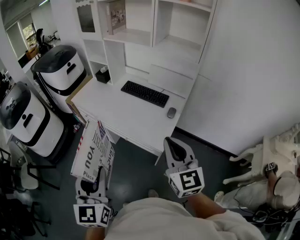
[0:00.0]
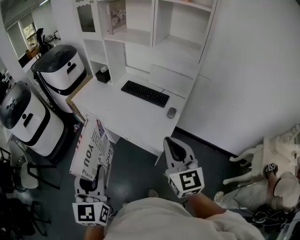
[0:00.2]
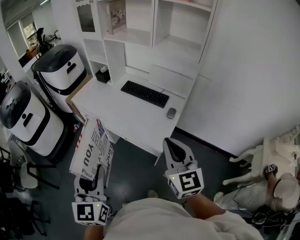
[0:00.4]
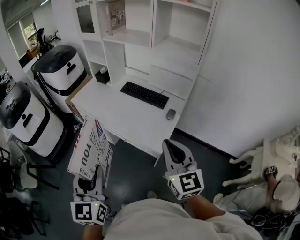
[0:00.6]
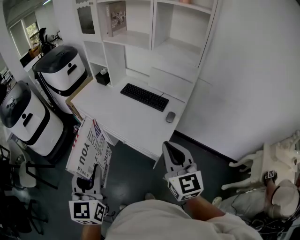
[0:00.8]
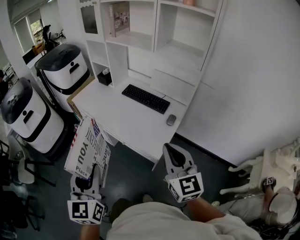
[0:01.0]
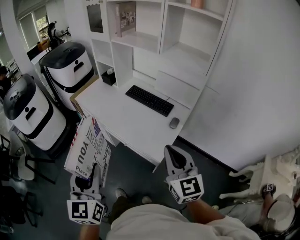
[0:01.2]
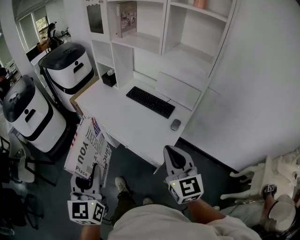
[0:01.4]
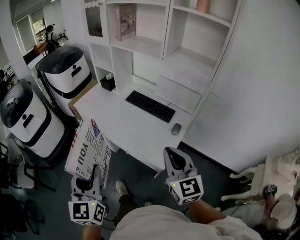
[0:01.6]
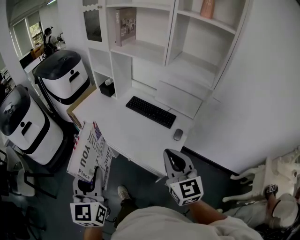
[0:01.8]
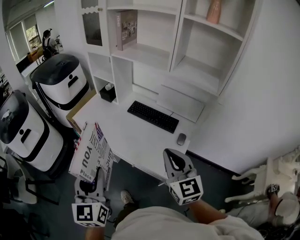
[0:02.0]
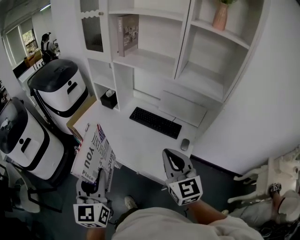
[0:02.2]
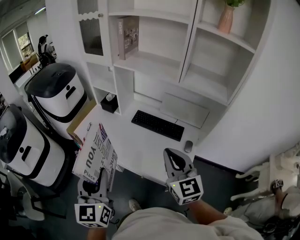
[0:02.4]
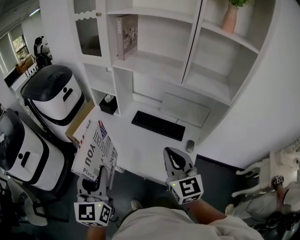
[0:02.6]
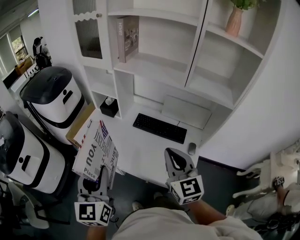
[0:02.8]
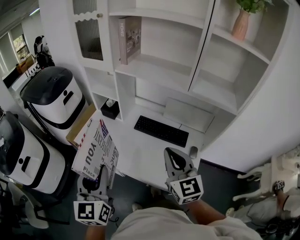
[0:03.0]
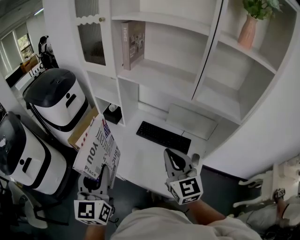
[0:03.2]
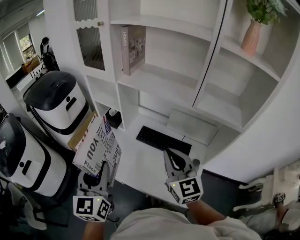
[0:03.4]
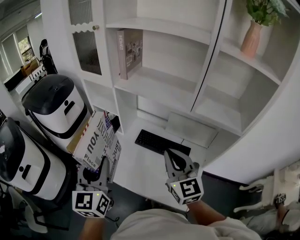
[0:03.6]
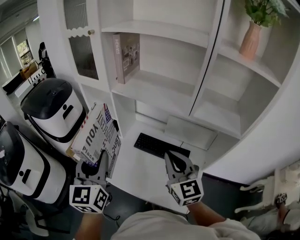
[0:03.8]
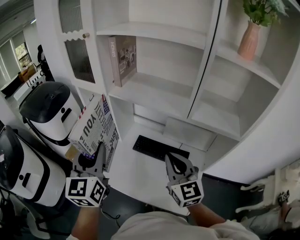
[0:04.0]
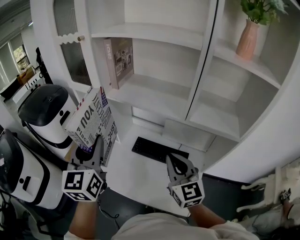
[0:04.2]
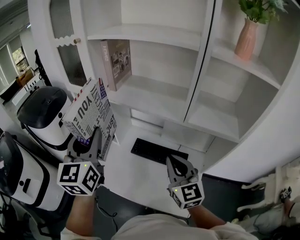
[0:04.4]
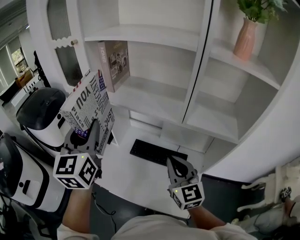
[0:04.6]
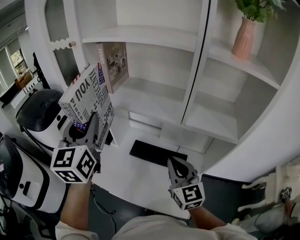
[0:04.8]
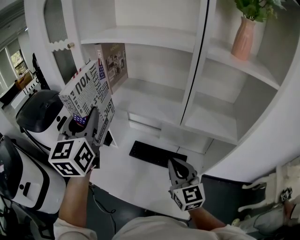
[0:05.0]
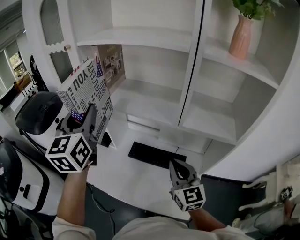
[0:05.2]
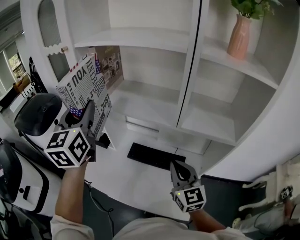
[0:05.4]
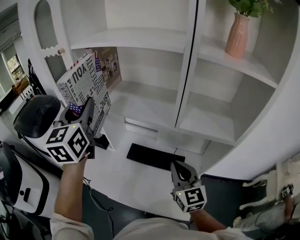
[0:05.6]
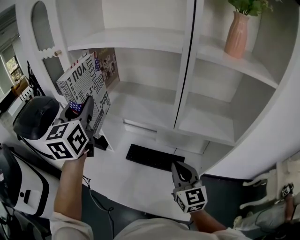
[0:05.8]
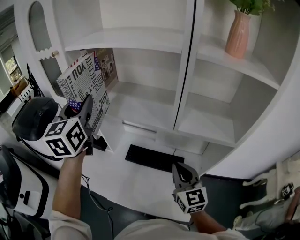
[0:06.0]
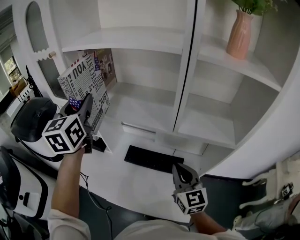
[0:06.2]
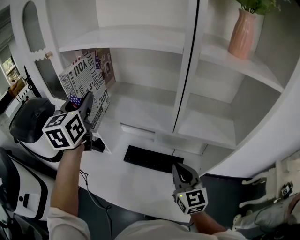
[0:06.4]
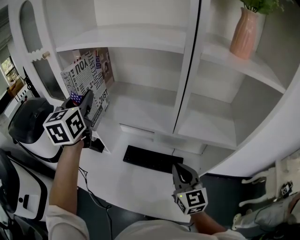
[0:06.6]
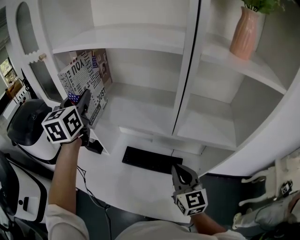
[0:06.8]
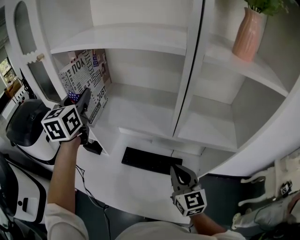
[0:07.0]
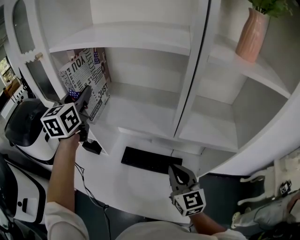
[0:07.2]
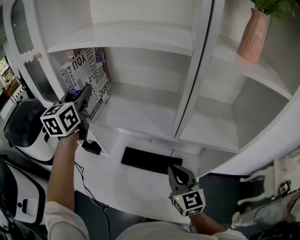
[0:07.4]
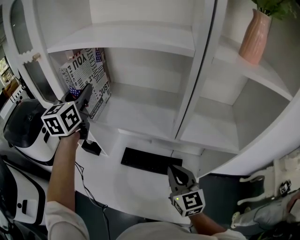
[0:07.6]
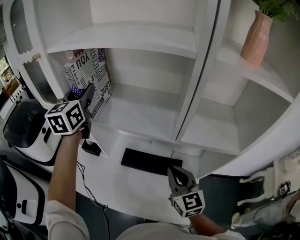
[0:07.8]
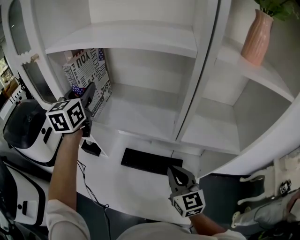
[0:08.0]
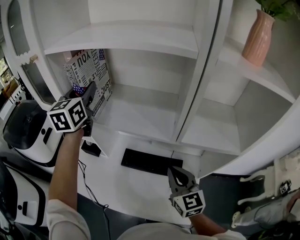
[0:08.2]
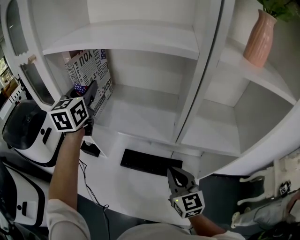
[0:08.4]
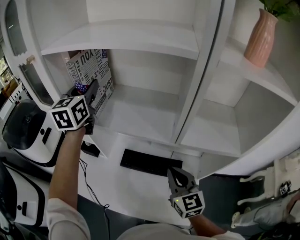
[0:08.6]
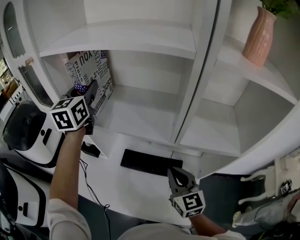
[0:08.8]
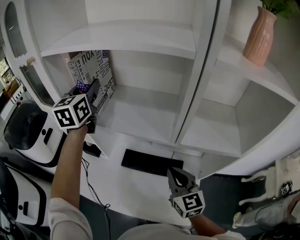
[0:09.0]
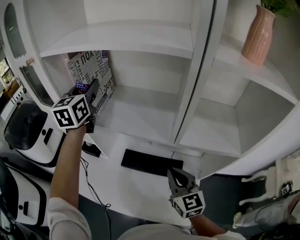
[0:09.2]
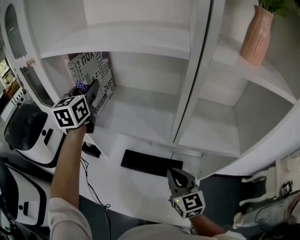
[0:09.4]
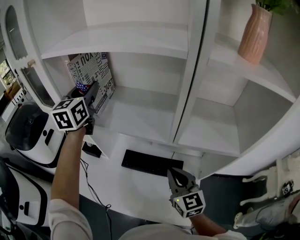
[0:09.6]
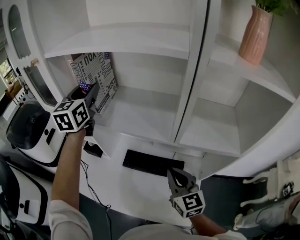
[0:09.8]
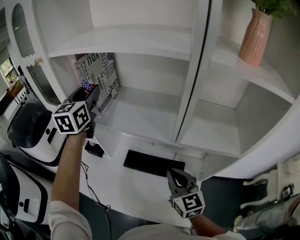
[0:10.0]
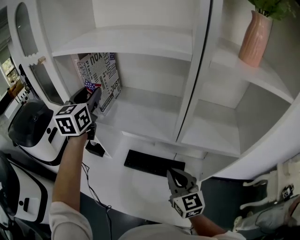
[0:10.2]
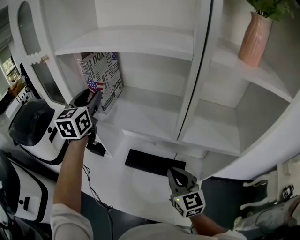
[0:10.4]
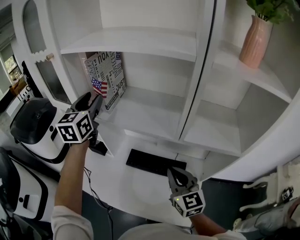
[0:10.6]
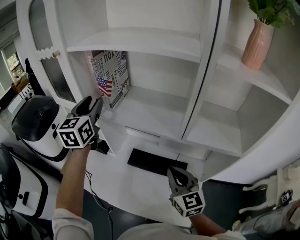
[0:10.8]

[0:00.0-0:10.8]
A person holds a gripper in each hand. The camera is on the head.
0:00.0 to 0:01.6: Both grippers travel together forward, roughly 10 cm.
0:01.6 to 0:03.0: The left gripper is displaced forward by approximately 25 cm, while the right gripper goes some 25 cm forward and to the left.
0:03.0 to 0:04.6: The left gripper heads forward and upward, covering some 30 cm; the right gripper heads forward and to the right, covering roughly 15 cm.
0:04.6 to 0:06.2: The left gripper heads forward, covering some 15 cm; the right gripper heads to the right, covering about 5 cm.
0:06.2 to 0:07.8: The left gripper shifts some 10 cm forward.
0:07.8 to 0:09.2: The grippers stay close to where they were, moving slightly.
0:09.2 to 0:10.8: The left gripper goes roughly 10 cm backward and to the left.

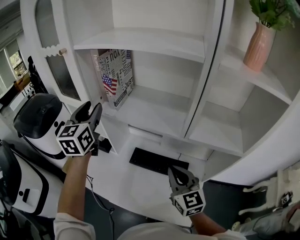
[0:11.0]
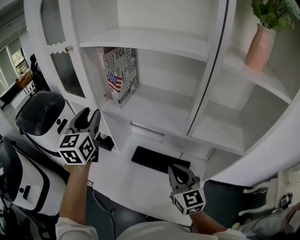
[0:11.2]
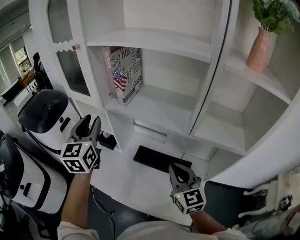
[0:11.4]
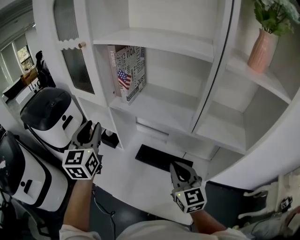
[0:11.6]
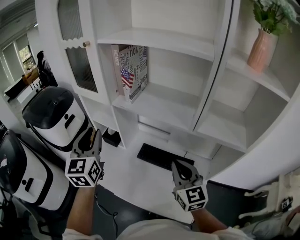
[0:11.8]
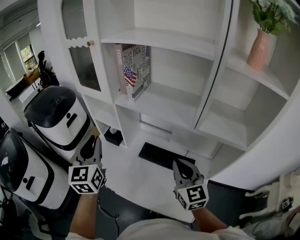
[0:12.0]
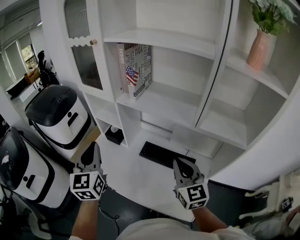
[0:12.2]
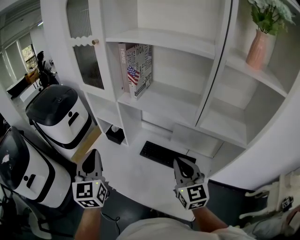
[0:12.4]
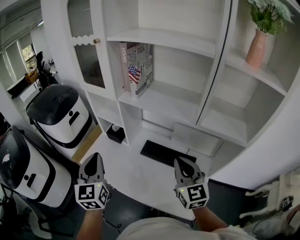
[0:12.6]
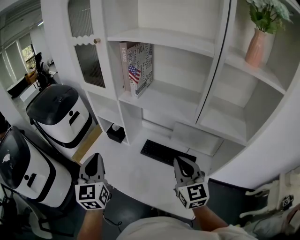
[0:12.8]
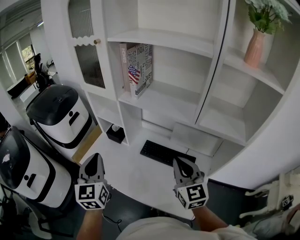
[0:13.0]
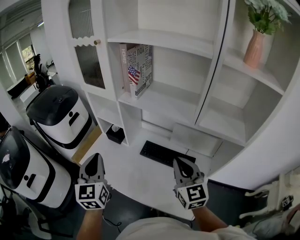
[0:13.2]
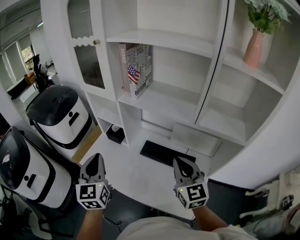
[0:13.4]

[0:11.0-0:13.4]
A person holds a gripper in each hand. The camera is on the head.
0:11.0 to 0:12.2: The left gripper moves backward and to the left, roughly 20 cm, and closes up; the right gripper shifts by approximately 5 cm.
0:12.2 to 0:13.4: The left gripper changes place by some 5 cm.

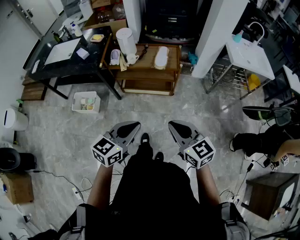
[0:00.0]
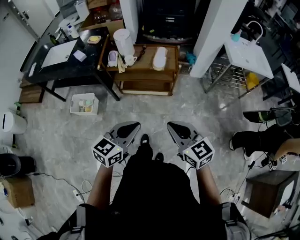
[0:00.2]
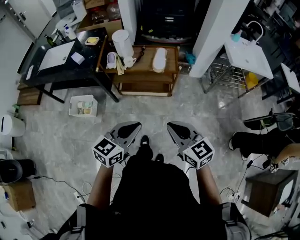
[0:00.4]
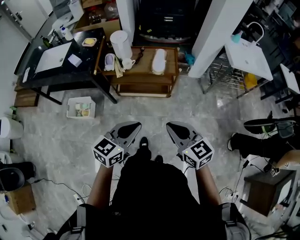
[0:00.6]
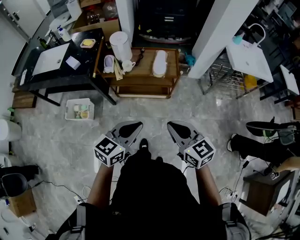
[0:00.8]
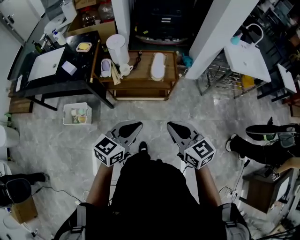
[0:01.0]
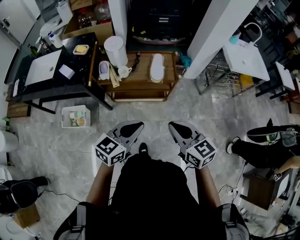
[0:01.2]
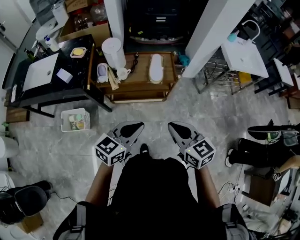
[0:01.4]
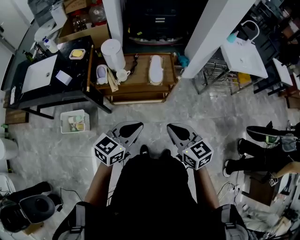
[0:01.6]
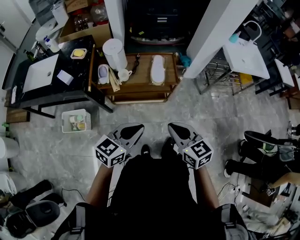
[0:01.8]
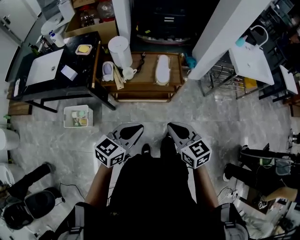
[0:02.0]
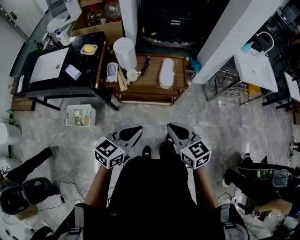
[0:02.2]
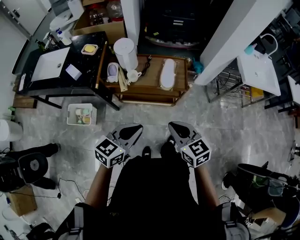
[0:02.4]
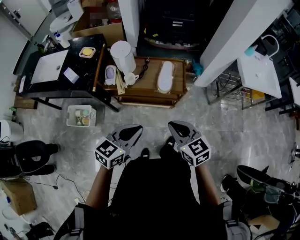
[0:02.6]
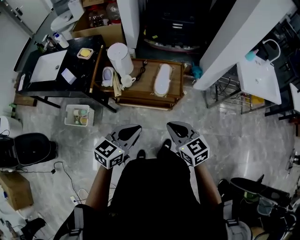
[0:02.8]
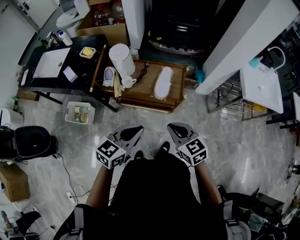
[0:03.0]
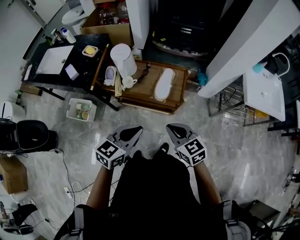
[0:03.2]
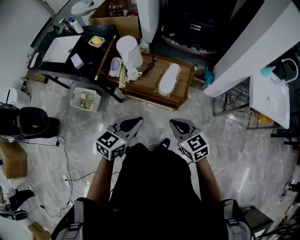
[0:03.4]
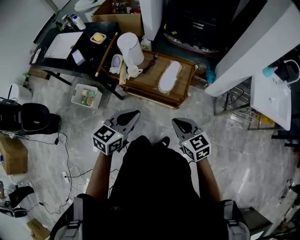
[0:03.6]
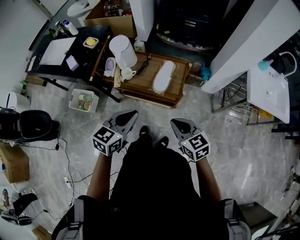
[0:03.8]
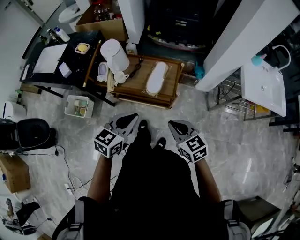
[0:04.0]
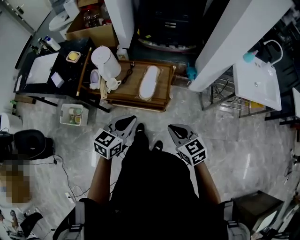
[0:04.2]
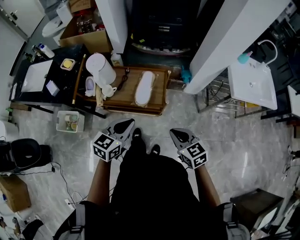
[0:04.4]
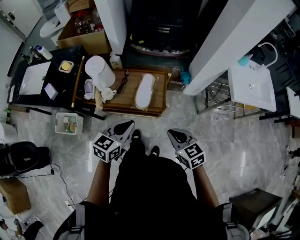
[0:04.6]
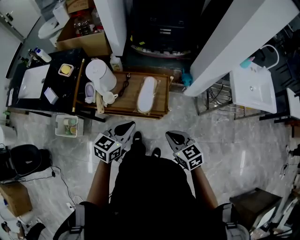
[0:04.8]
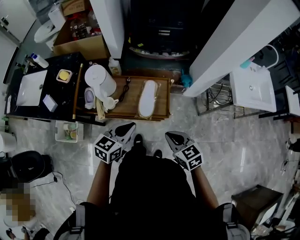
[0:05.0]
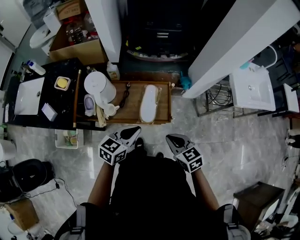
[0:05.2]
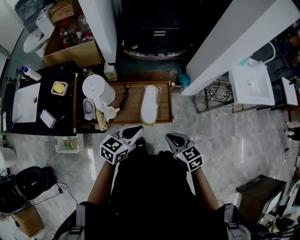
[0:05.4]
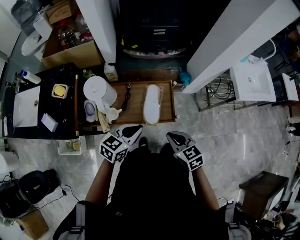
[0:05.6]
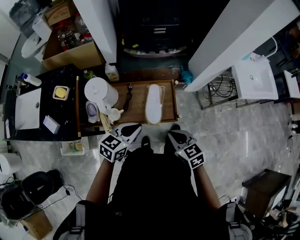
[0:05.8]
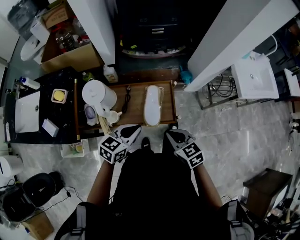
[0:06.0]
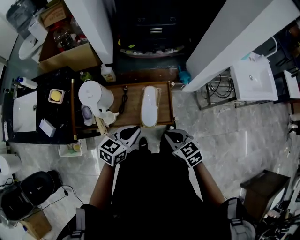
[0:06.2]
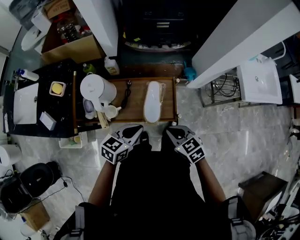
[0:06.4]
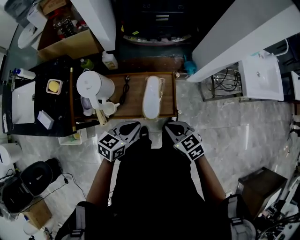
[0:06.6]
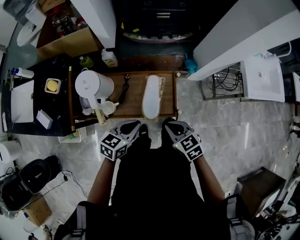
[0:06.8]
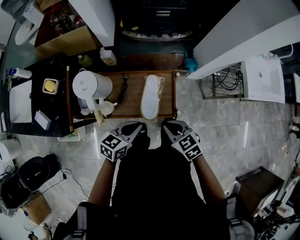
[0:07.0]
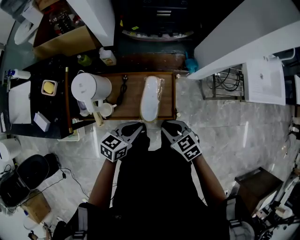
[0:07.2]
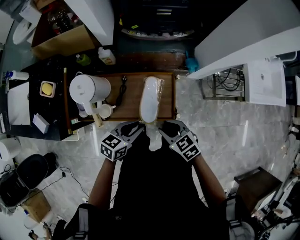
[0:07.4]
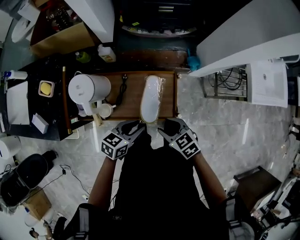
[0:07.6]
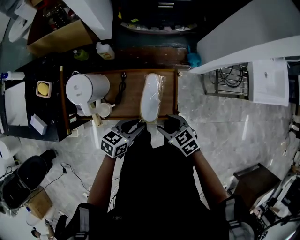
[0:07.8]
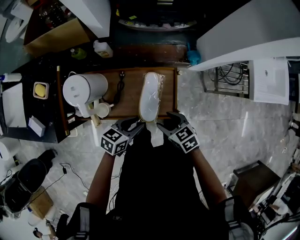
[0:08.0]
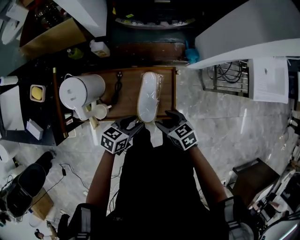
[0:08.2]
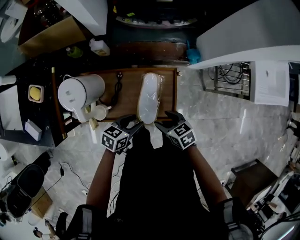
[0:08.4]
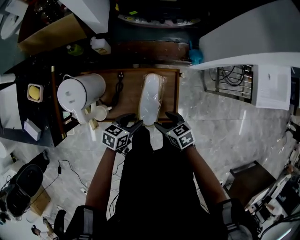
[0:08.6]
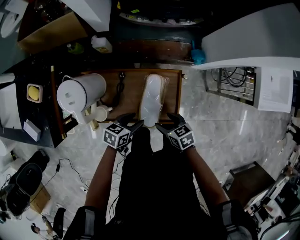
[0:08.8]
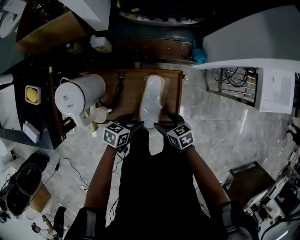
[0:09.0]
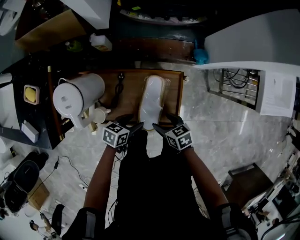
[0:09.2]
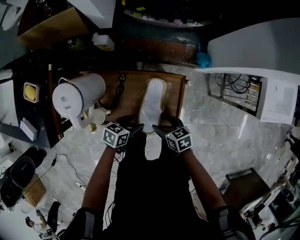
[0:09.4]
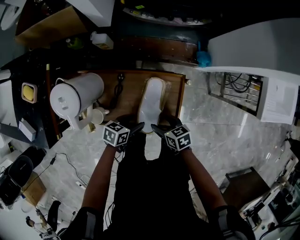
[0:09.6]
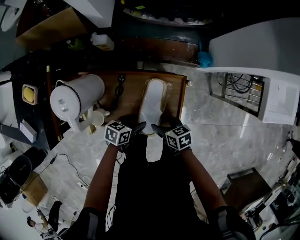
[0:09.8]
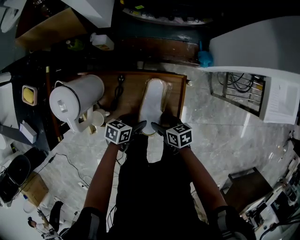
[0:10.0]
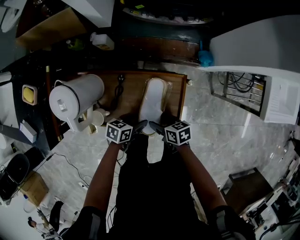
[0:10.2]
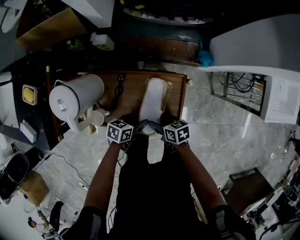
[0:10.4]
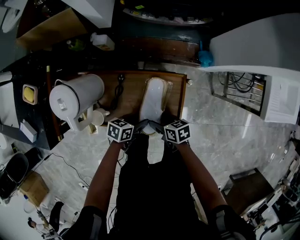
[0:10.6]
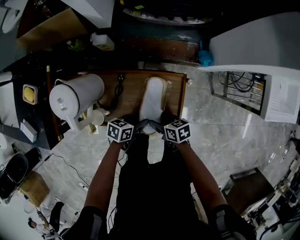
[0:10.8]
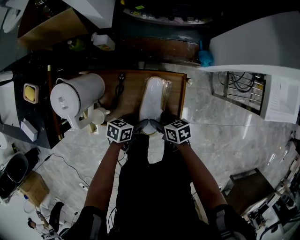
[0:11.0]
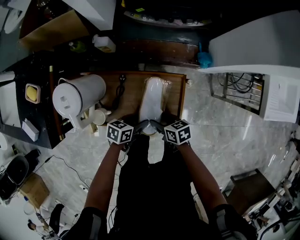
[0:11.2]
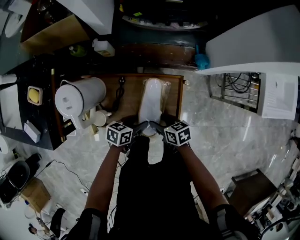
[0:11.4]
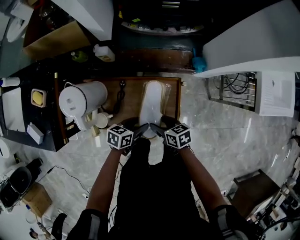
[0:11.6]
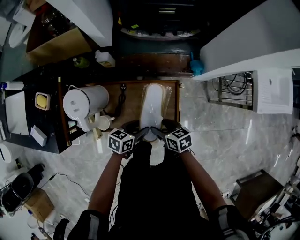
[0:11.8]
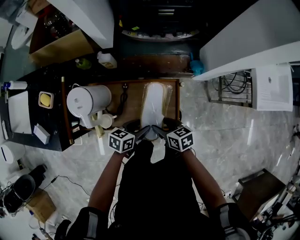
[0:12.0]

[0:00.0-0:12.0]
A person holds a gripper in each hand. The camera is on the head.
0:00.0 to 0:01.6: The left gripper travels forward by some 20 cm; the right gripper moves forward and to the left, about 20 cm.
0:01.6 to 0:03.0: Both grippers travel together forward and to the right, roughly 10 cm.
0:03.0 to 0:04.4: The right gripper heads to the right, covering approximately 15 cm. The left gripper heads forward and to the right, covering some 10 cm.
0:04.4 to 0:06.0: Both grippers move forward and to the left, about 15 cm.
0:06.0 to 0:07.6: The right gripper is displaced downward and forward by some 10 cm, and opens up. The left gripper is displaced downward by about 10 cm, and opens.
0:07.6 to 0:09.0: Both grippers move downward, some 15 cm. The right gripper rotates roughly 20 degrees, and opens; the left gripper opens its fingers.
0:09.0 to 0:10.4: The grippers both shift downward by some 5 cm.
0:10.4 to 0:12.0: Both grippers move upward, some 10 cm.
